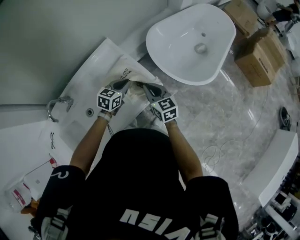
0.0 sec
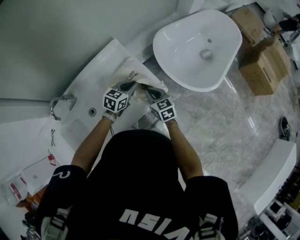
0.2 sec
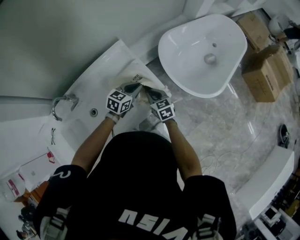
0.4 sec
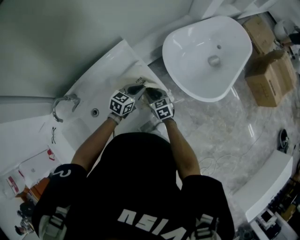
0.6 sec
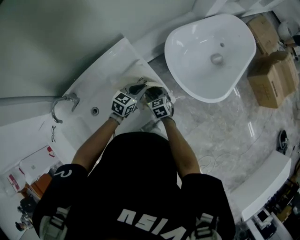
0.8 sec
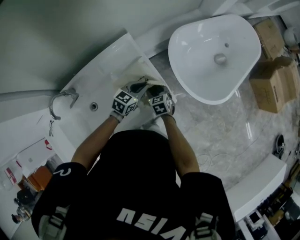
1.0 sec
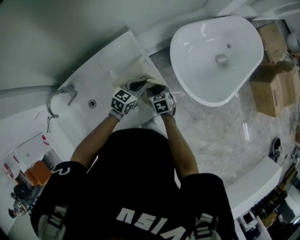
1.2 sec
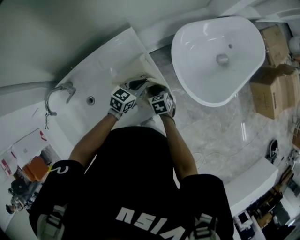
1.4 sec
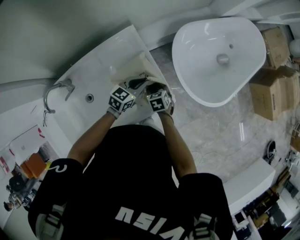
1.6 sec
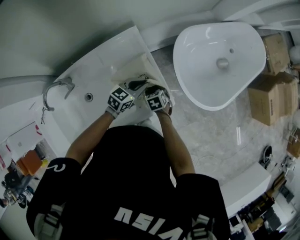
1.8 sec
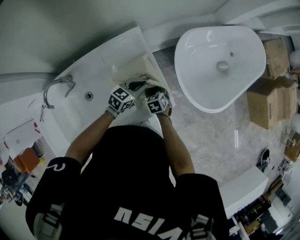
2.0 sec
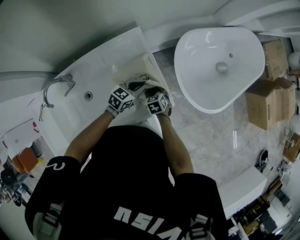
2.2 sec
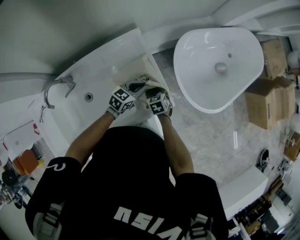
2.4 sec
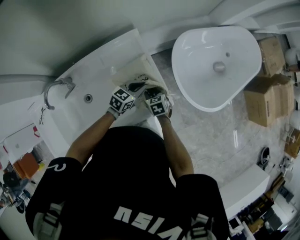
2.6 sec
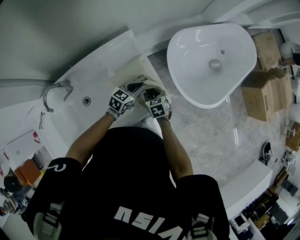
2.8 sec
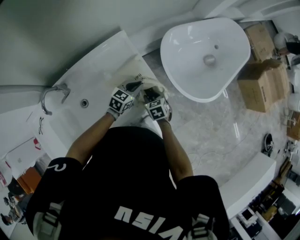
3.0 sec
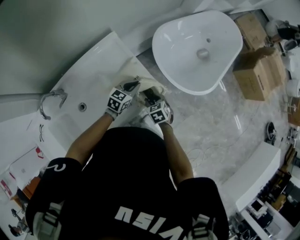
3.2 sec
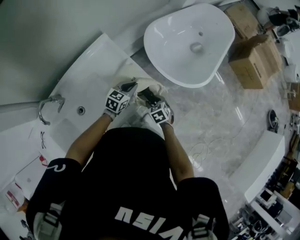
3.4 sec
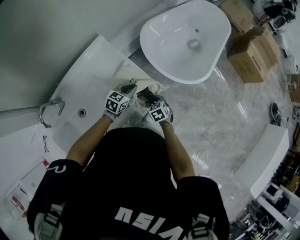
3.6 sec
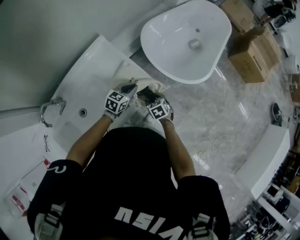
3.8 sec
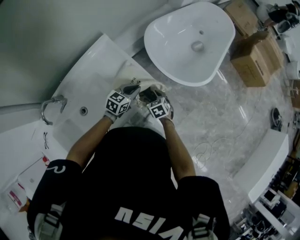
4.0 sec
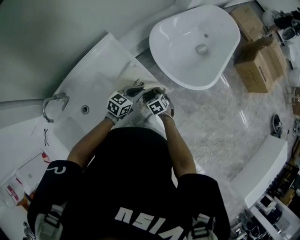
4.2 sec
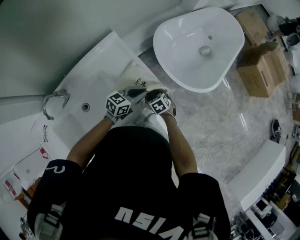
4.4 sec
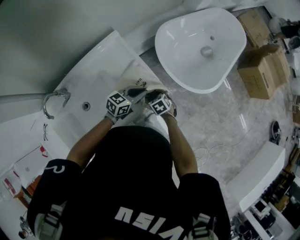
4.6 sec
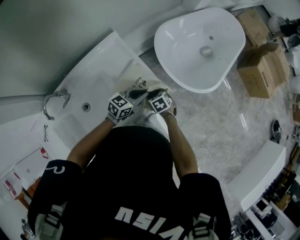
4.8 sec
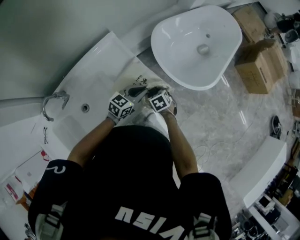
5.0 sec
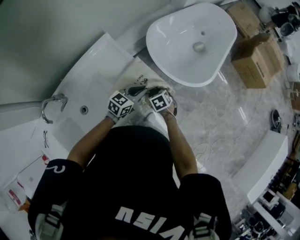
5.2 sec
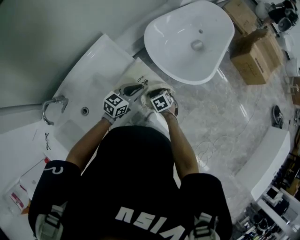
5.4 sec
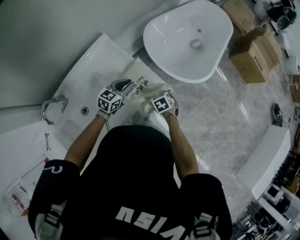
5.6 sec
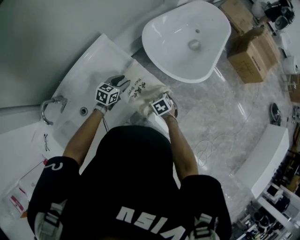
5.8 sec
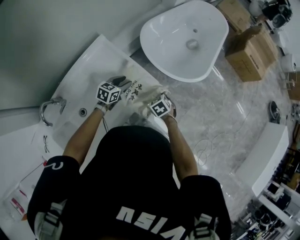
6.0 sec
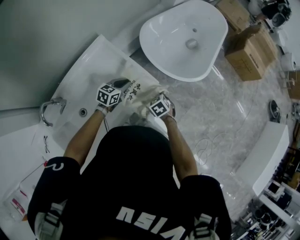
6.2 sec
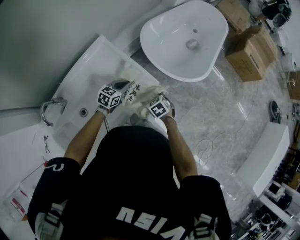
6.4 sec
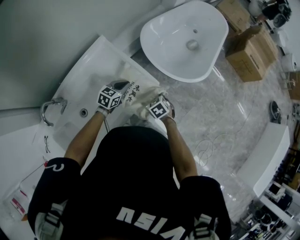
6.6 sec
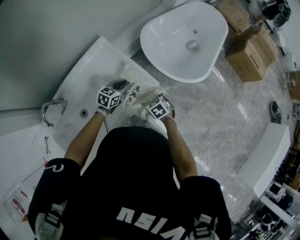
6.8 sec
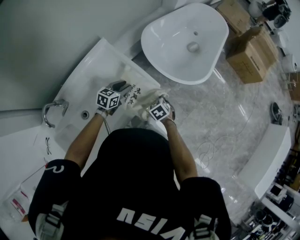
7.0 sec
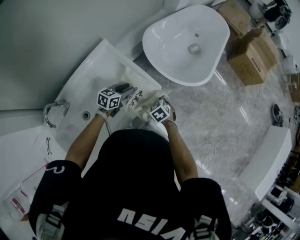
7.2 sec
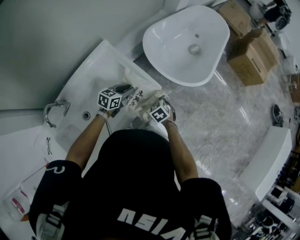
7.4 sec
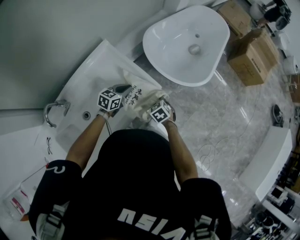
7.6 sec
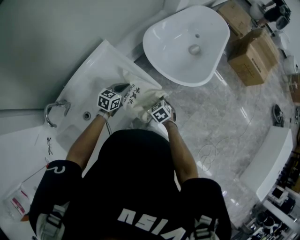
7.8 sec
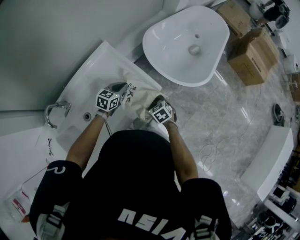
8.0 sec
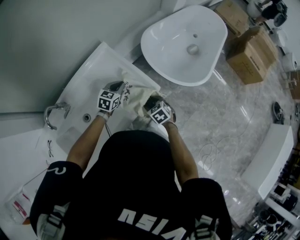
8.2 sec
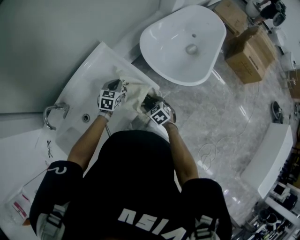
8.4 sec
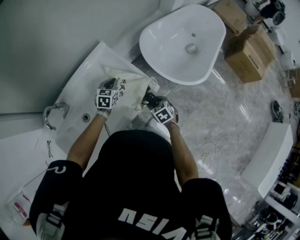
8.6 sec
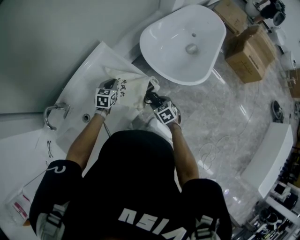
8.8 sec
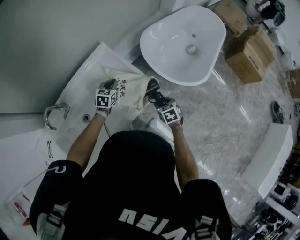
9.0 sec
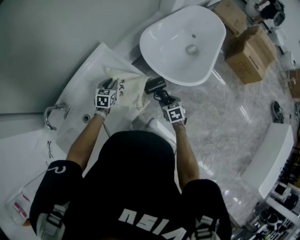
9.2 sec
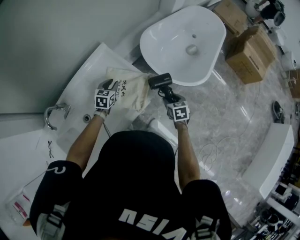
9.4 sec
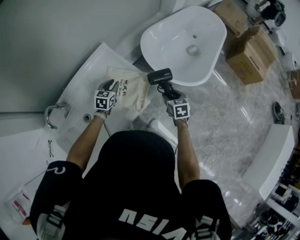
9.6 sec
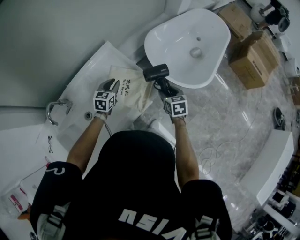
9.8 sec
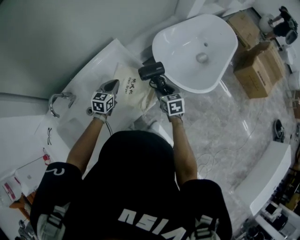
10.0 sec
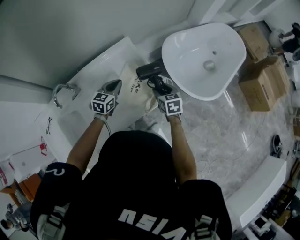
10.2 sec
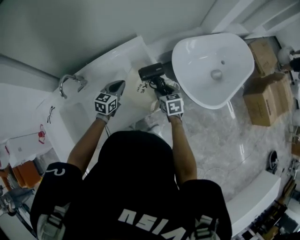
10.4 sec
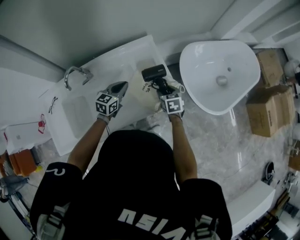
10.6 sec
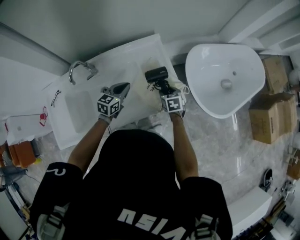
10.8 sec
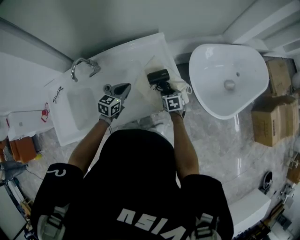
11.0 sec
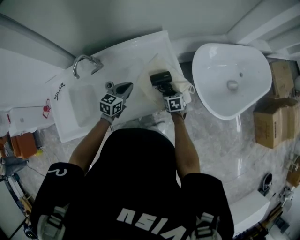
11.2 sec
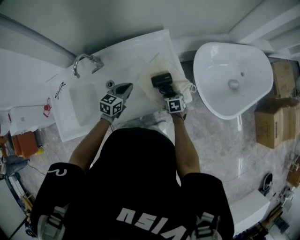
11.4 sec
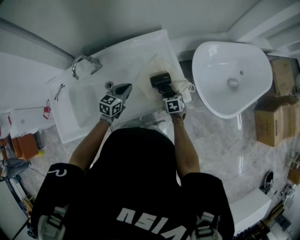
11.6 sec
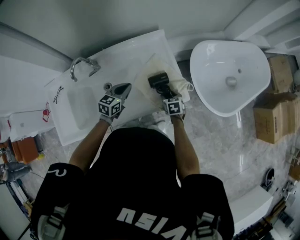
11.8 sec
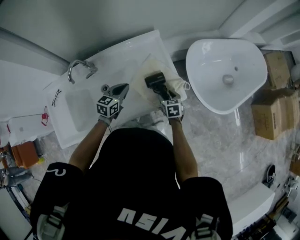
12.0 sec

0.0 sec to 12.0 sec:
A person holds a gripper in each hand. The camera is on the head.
0.0 sec to 1.6 sec: The left gripper shifts roughly 10 cm forward, while the right gripper is displaced downward and forward by roughly 20 cm, tilts its fingers some 40 degrees downward, and opens.
1.6 sec to 3.0 sec: The right gripper is displaced backward and upward by roughly 10 cm.
3.0 sec to 4.4 sec: The left gripper heads to the right and backward, covering about 10 cm; the right gripper moves downward and to the right, about 10 cm.
4.4 sec to 6.0 sec: The right gripper travels upward by roughly 5 cm. The left gripper moves to the left and downward, approximately 10 cm, and opens up.
6.0 sec to 7.6 sec: The left gripper closes.
7.6 sec to 9.0 sec: The right gripper moves to the right, roughly 5 cm. The left gripper heads to the left and forward, covering some 10 cm, and rotates some 30 degrees.
9.0 sec to 10.4 sec: The left gripper is displaced upward, backward and to the left by some 15 cm, and opens and closes again. The right gripper moves to the left, forward and upward, some 15 cm.
10.4 sec to 12.0 sec: The right gripper shifts about 10 cm downward. The left gripper travels backward by approximately 5 cm.

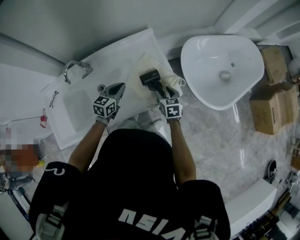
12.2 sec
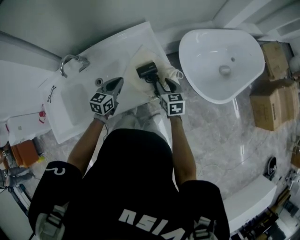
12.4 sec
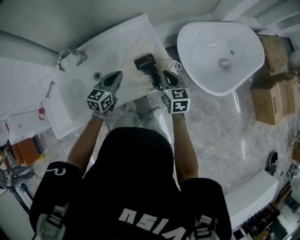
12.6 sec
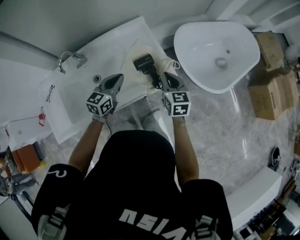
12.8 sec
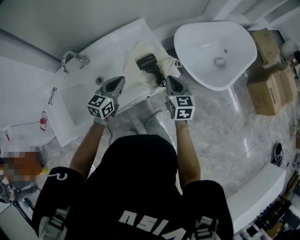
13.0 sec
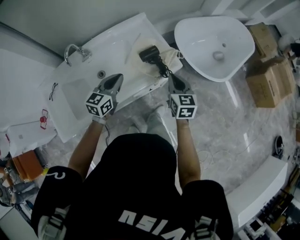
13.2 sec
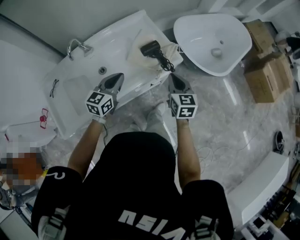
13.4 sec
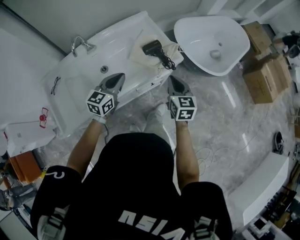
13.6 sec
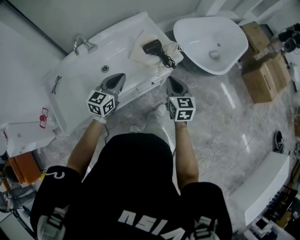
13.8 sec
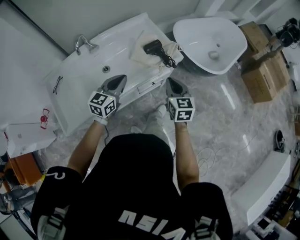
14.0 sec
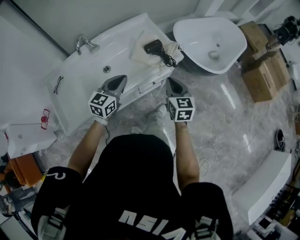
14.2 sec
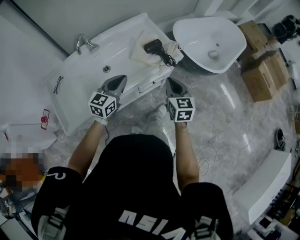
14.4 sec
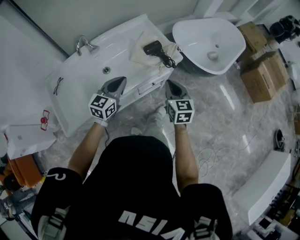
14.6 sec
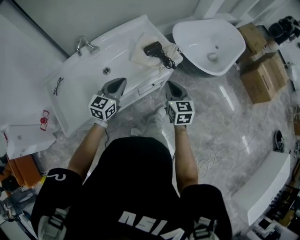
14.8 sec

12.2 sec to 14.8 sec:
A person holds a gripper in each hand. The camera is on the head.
12.2 sec to 13.4 sec: The grippers both shift backward and upward by roughly 20 cm. The right gripper changes its angle by roughly 20 degrees, and closes.
13.4 sec to 14.8 sec: The two grippers go about 10 cm backward.

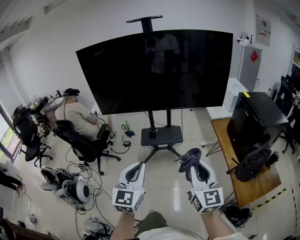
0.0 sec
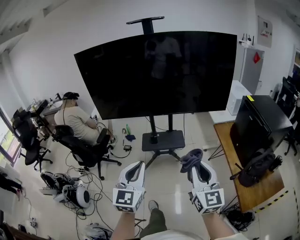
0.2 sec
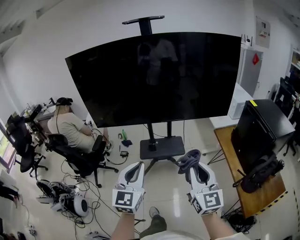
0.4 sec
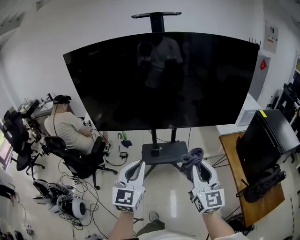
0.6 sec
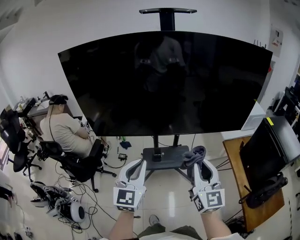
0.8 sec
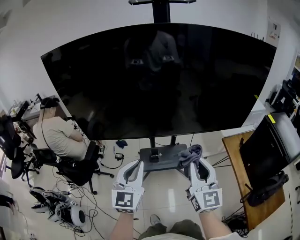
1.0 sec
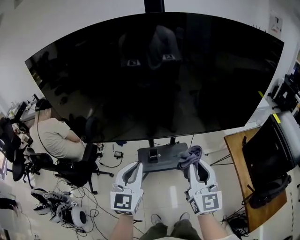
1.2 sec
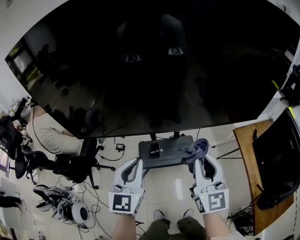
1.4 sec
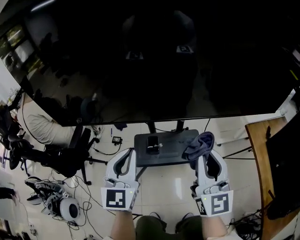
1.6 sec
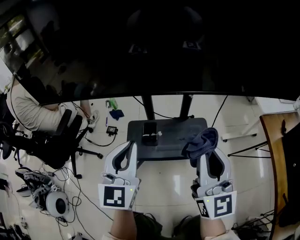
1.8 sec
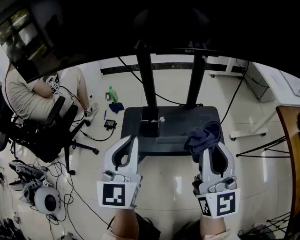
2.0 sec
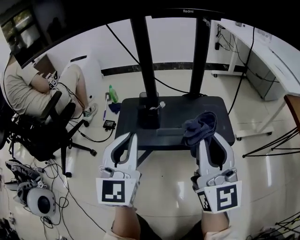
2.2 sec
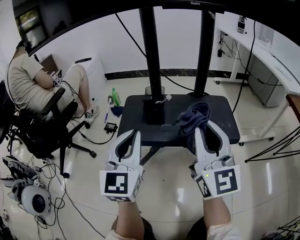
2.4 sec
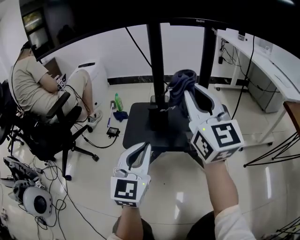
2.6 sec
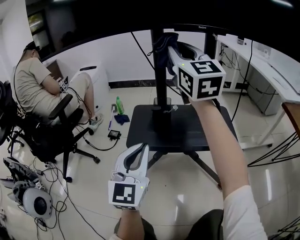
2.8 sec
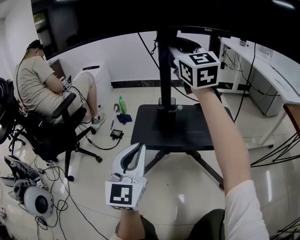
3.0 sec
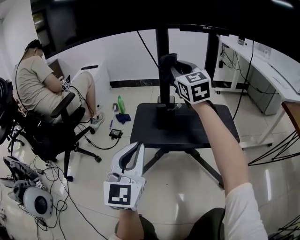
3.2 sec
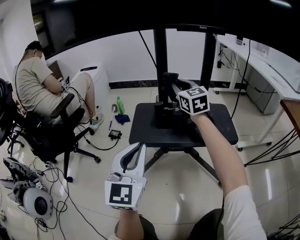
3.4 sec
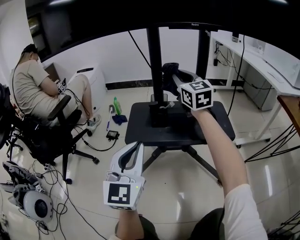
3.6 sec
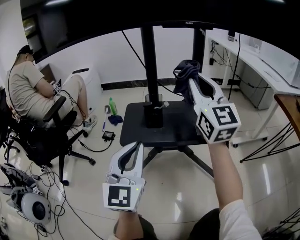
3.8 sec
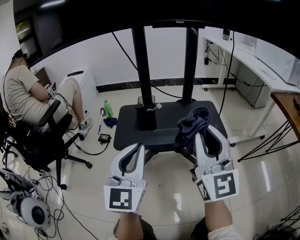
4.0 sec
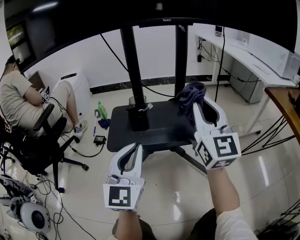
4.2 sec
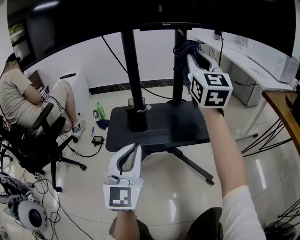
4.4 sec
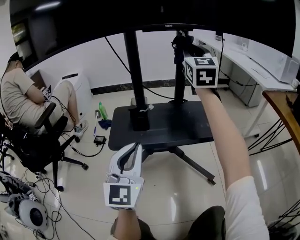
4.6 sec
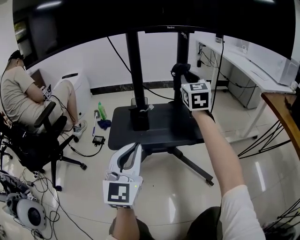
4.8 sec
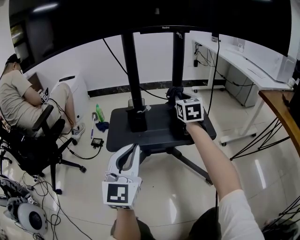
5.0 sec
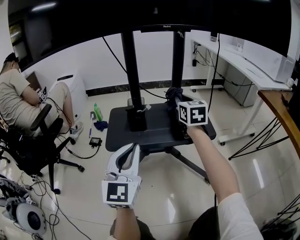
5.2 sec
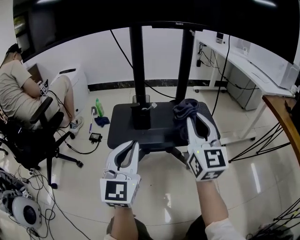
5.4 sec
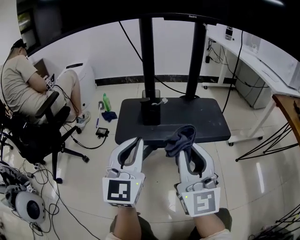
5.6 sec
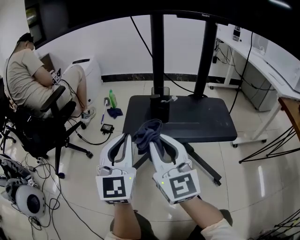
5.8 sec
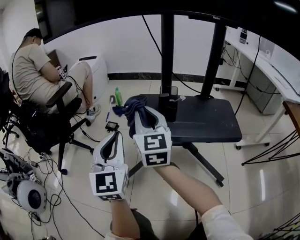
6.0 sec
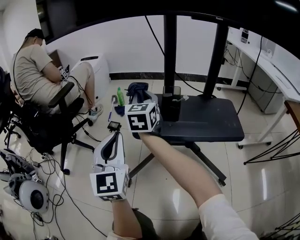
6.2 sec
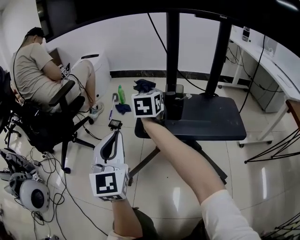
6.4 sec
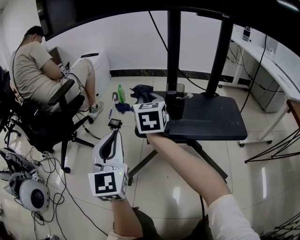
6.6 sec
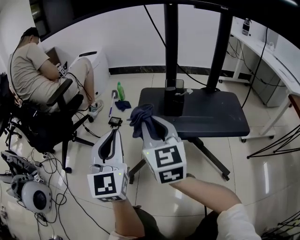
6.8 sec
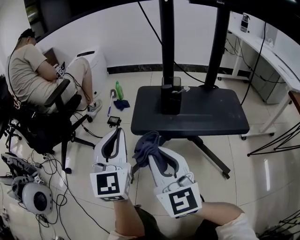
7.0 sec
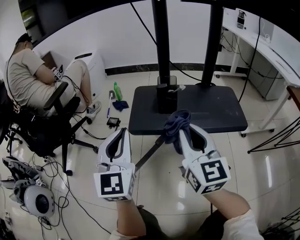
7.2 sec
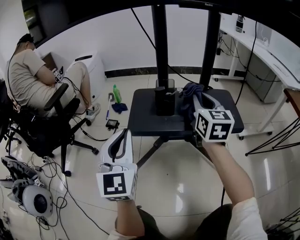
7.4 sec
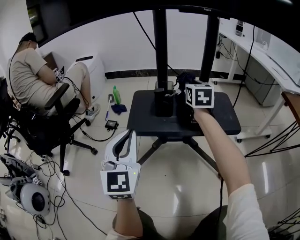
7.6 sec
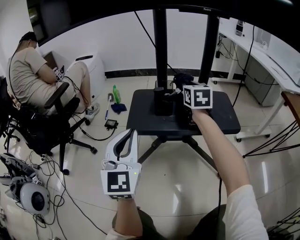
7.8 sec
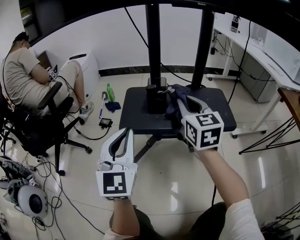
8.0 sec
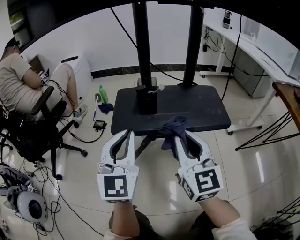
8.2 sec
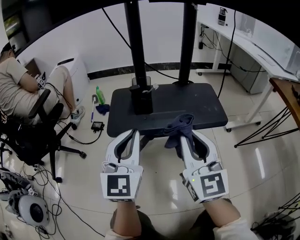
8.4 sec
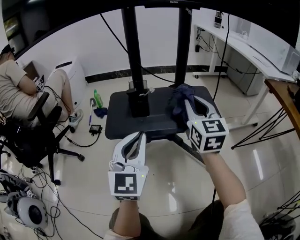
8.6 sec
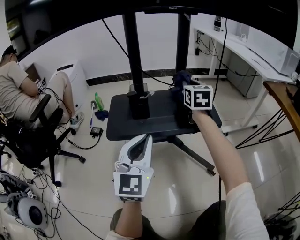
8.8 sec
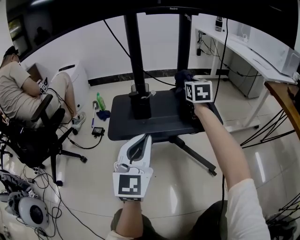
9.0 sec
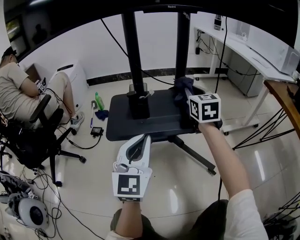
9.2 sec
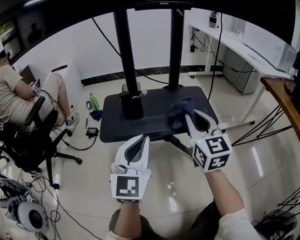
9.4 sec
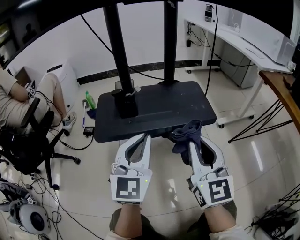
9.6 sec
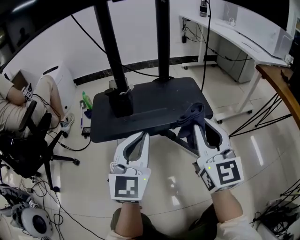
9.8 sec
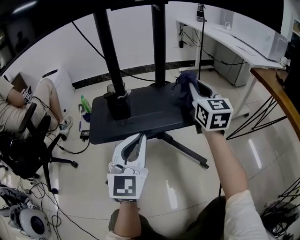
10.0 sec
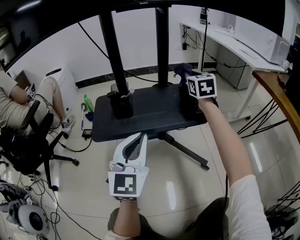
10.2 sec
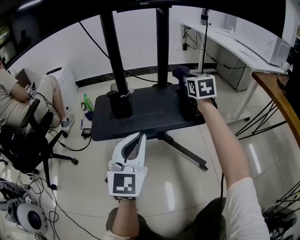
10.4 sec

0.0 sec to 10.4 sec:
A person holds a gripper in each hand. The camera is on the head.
0.0 sec to 1.4 sec: The pair of grippers is taken forward, roughly 70 cm.
1.4 sec to 3.0 sec: The left gripper heads downward, covering approximately 70 cm. The right gripper shifts roughly 60 cm downward and forward, and swivels some 20 degrees.
3.0 sec to 4.4 sec: The left gripper heads to the right, covering roughly 5 cm; the right gripper goes forward and backward, some 30 cm each way, reversing 2 times.
4.4 sec to 6.0 sec: The left gripper shifts about 15 cm to the left, while the right gripper goes forward and backward, approximately 30 cm each way, reversing 2 times.
6.0 sec to 7.4 sec: The right gripper moves forward and backward over some 30 cm, changing direction 2 times.
7.4 sec to 9.0 sec: The left gripper travels to the right by some 15 cm, while the right gripper goes forward and backward, some 30 cm each way, reversing 2 times.
9.0 sec to 10.4 sec: The right gripper heads to the right, covering approximately 5 cm, and moves about 30 cm backward and comes back.
